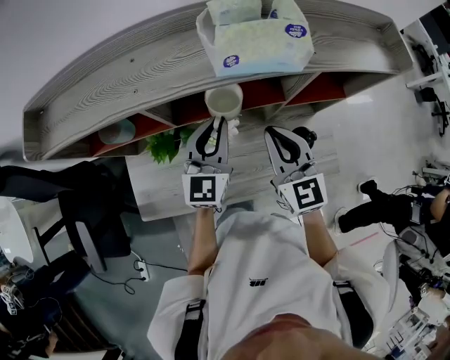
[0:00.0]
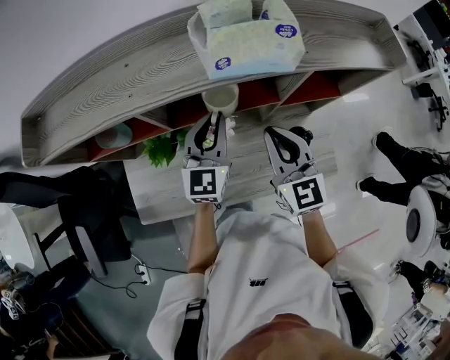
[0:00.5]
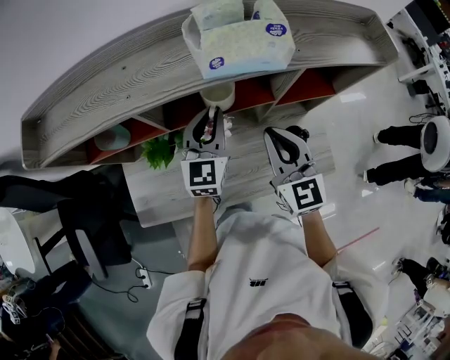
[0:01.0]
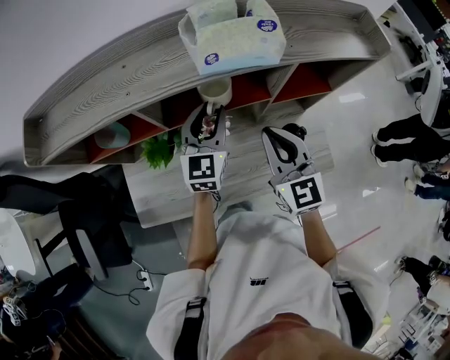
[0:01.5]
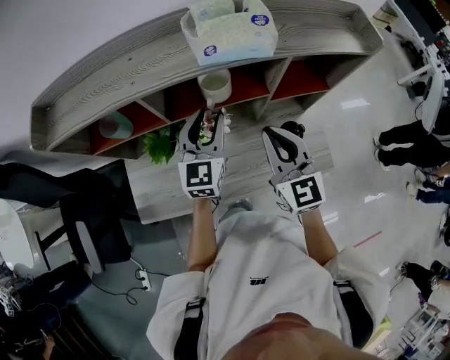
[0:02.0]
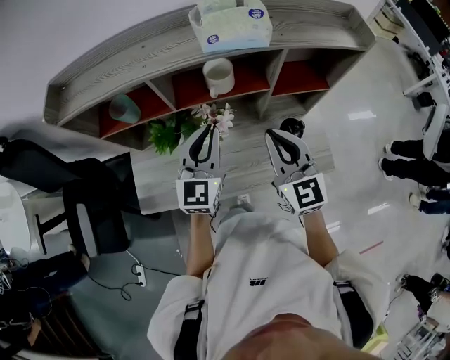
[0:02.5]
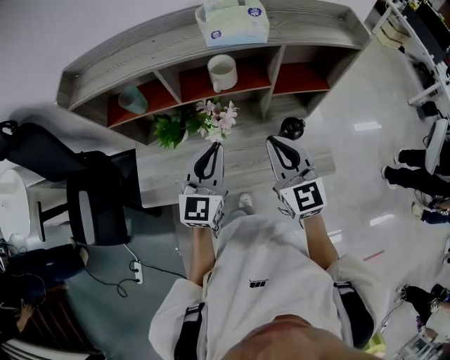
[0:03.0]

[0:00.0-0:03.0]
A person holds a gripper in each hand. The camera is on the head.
0:00.0 to 0:01.5: The left gripper opens up.
0:01.5 to 0:03.0: The right gripper travels backward by about 10 cm. Meanwhile the left gripper moves backward, some 20 cm, and closes its fingers.

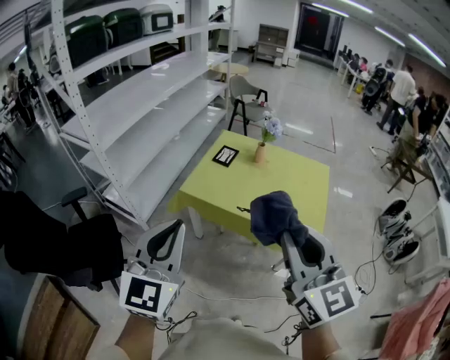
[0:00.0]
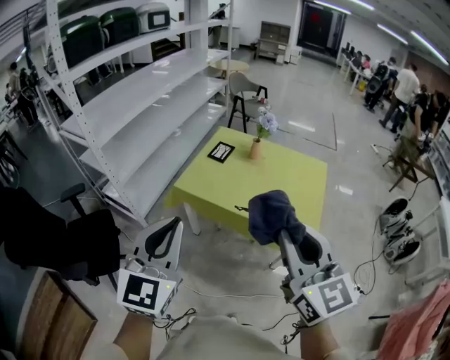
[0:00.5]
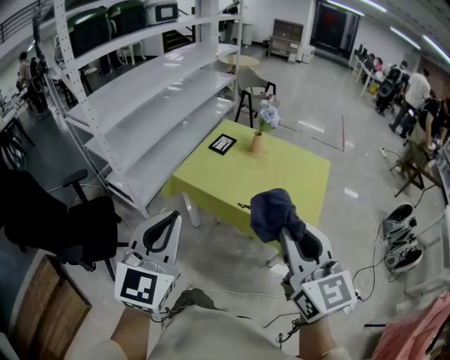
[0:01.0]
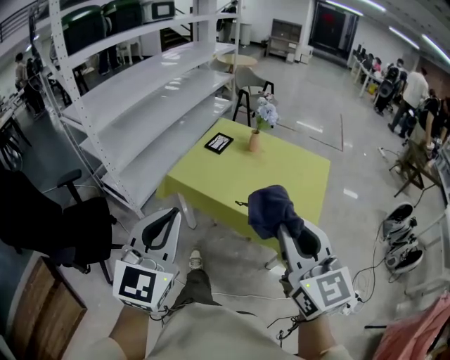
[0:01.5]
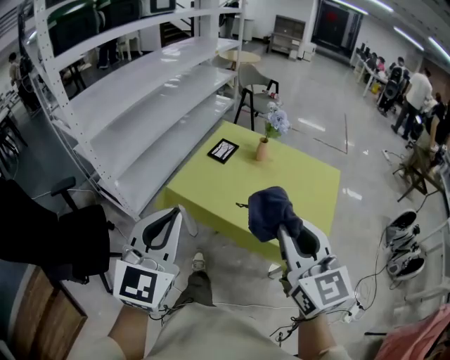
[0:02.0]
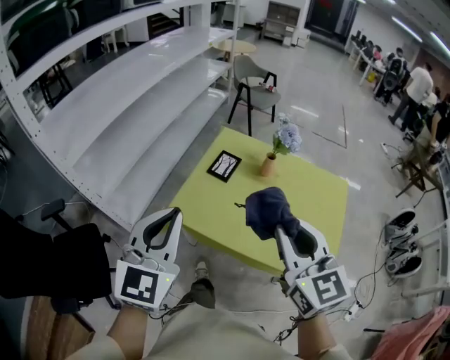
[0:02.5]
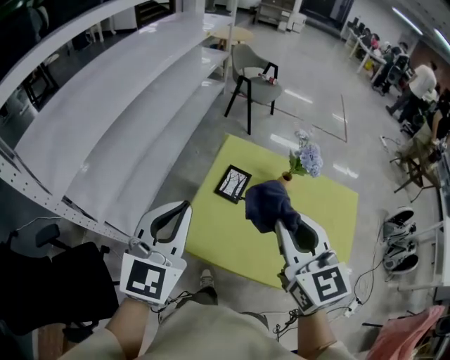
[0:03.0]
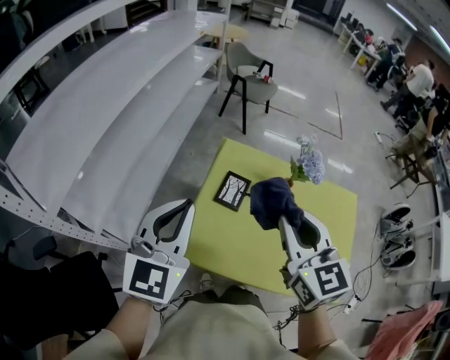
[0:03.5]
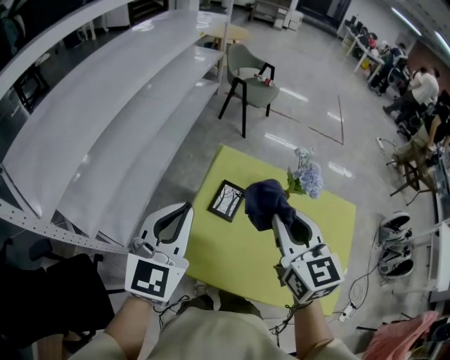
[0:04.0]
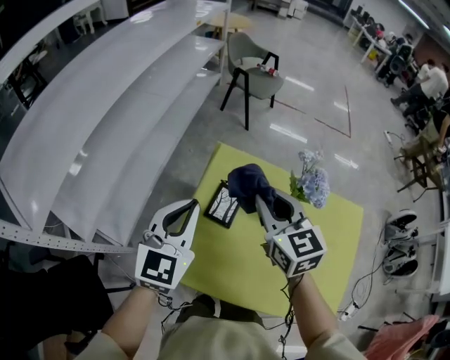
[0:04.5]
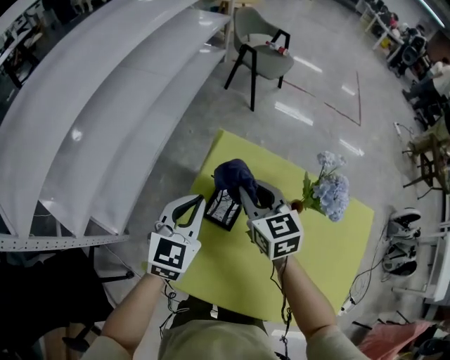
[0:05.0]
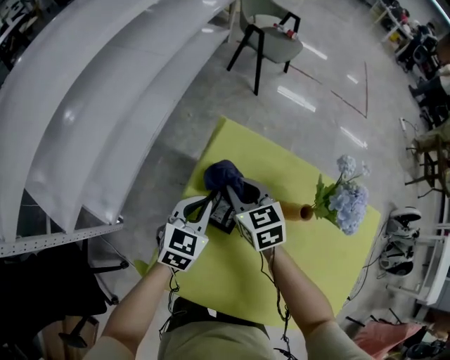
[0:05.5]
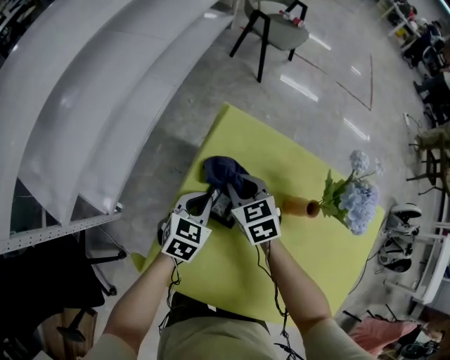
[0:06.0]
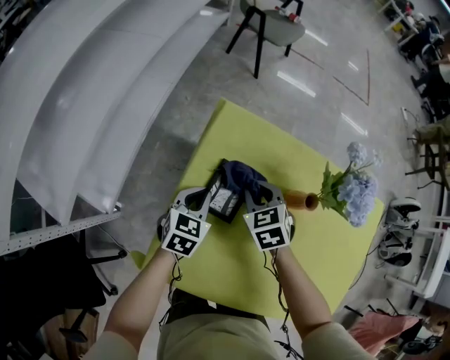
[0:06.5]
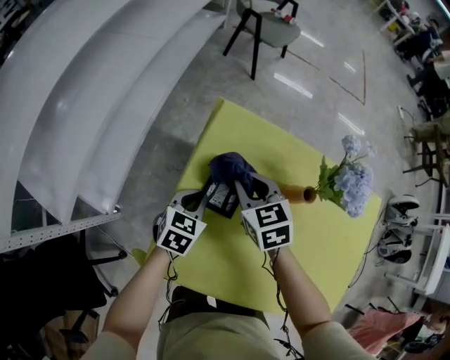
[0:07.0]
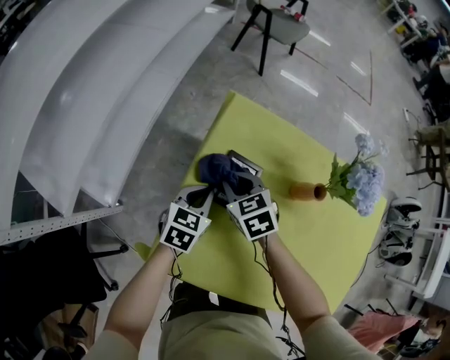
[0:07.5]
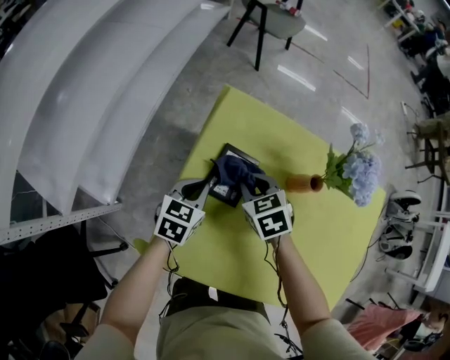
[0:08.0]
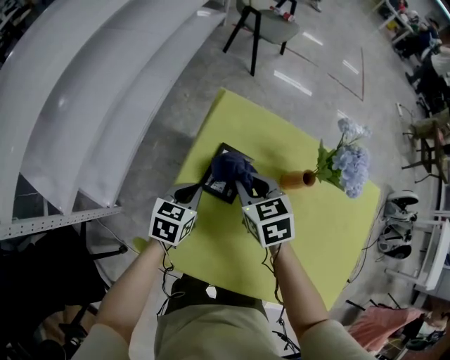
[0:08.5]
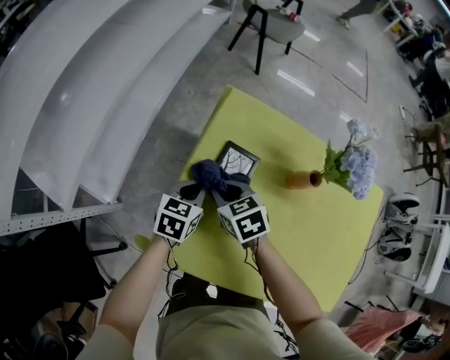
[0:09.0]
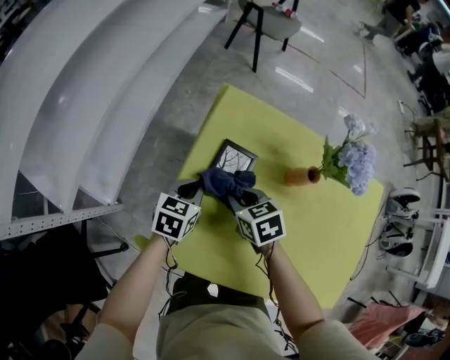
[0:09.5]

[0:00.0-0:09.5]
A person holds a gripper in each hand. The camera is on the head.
0:00.0 to 0:02.0: The right gripper heads forward, downward and to the right, covering roughly 20 cm, while the left gripper heads forward, to the right and downward, covering approximately 15 cm.
0:02.0 to 0:04.0: Both grippers are carried forward, some 40 cm.
0:04.0 to 0:05.5: The two grippers go approximately 35 cm downward and forward. The right gripper swivels about 30 degrees. The left gripper rotates roughly 30 degrees.
0:05.5 to 0:07.5: Both grippers travel together downward, about 5 cm. The right gripper travels to the right and back again, roughly 5 cm each way.
0:07.5 to 0:09.5: The right gripper moves left and right over roughly 10 cm, changing direction 2 times.

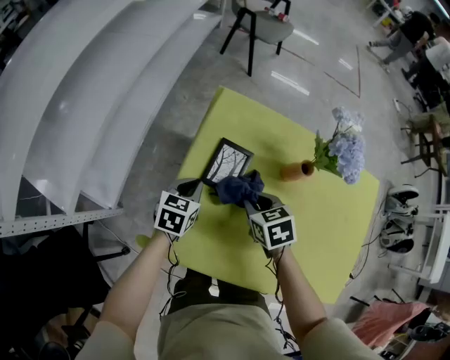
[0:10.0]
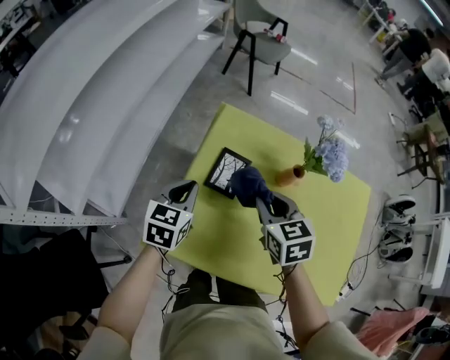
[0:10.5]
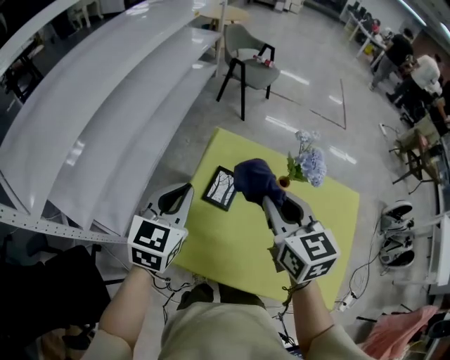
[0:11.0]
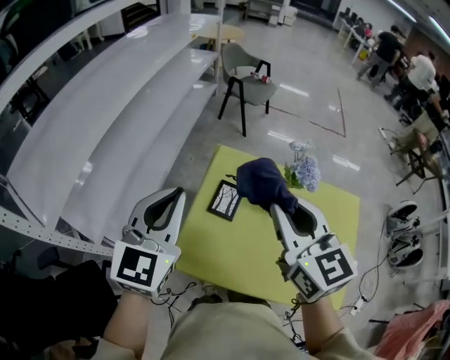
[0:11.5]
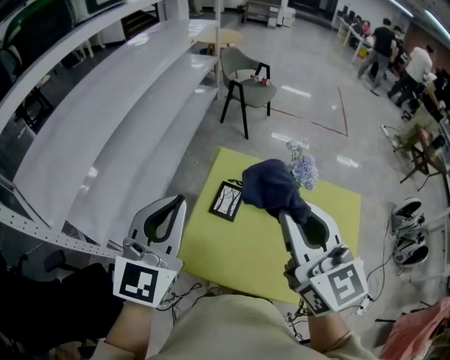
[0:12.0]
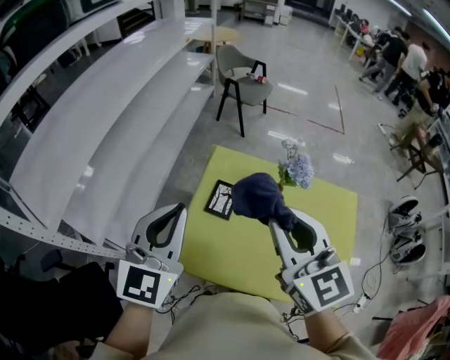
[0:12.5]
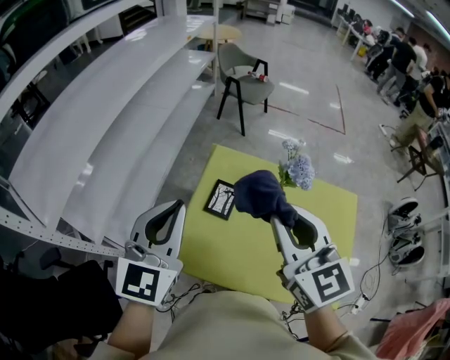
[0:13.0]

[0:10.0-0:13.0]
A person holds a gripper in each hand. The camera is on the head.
0:10.0 to 0:11.5: Both grippers move upward, roughly 40 cm. The right gripper tilts its fingers about 50 degrees upward, while the left gripper angles its fingers upward, by approximately 40 degrees.

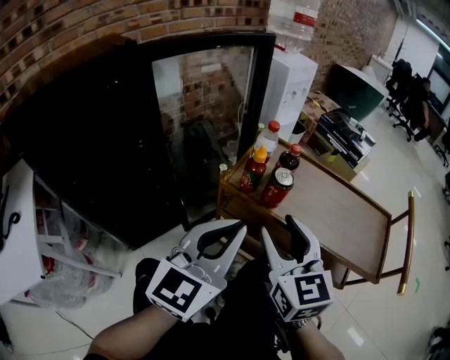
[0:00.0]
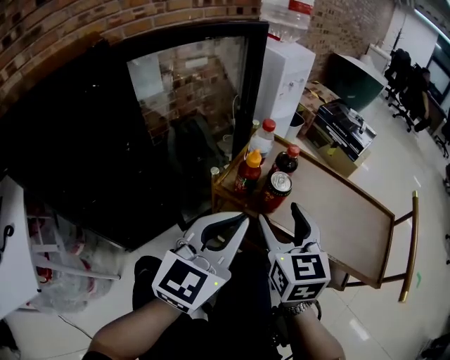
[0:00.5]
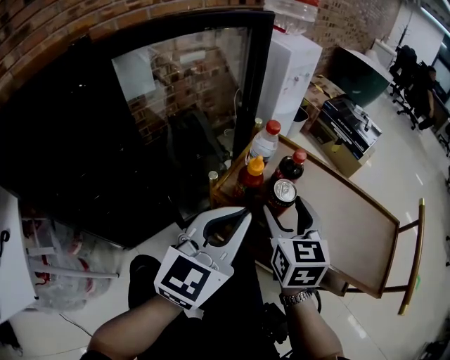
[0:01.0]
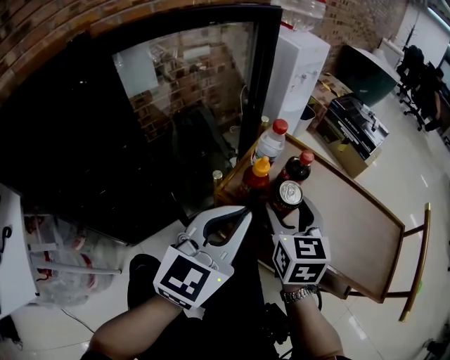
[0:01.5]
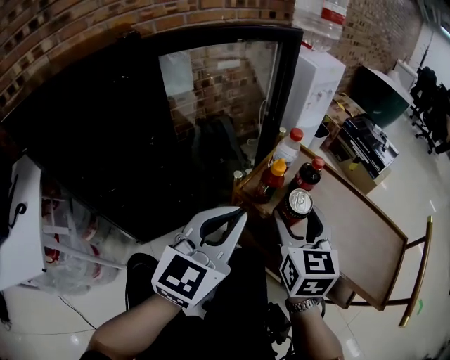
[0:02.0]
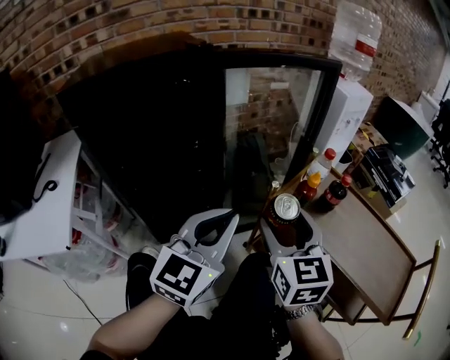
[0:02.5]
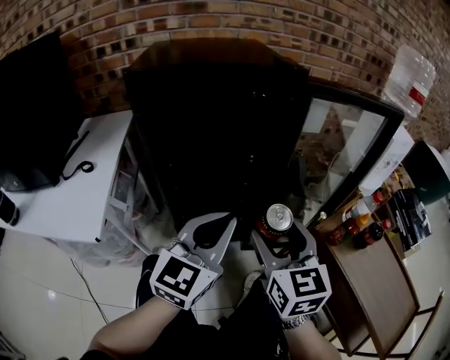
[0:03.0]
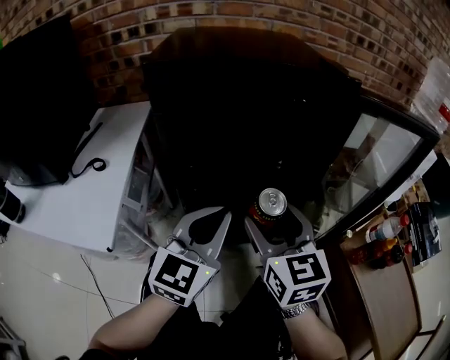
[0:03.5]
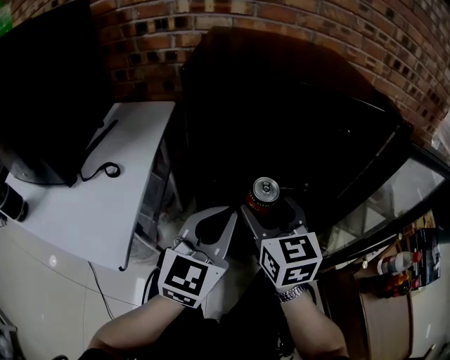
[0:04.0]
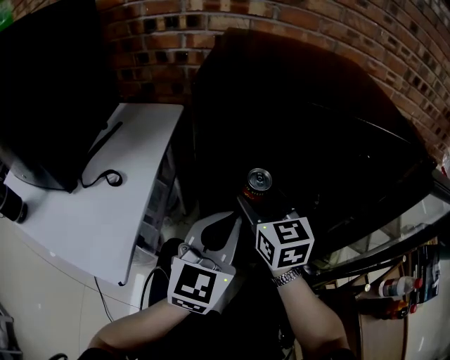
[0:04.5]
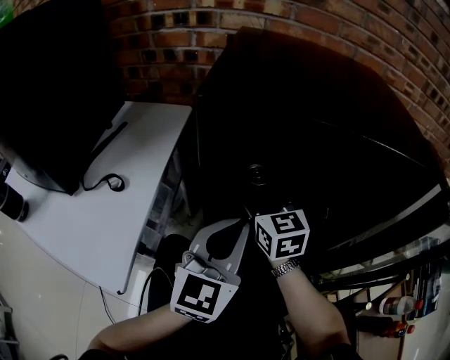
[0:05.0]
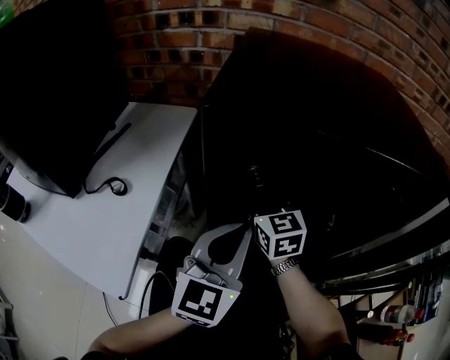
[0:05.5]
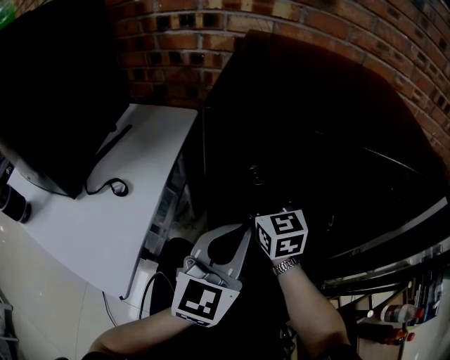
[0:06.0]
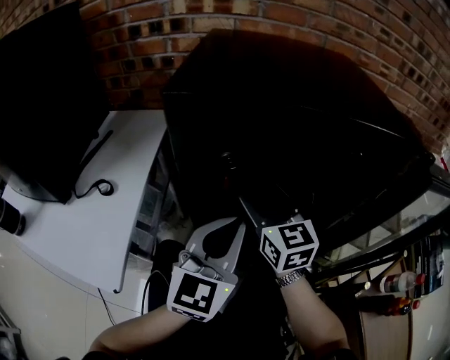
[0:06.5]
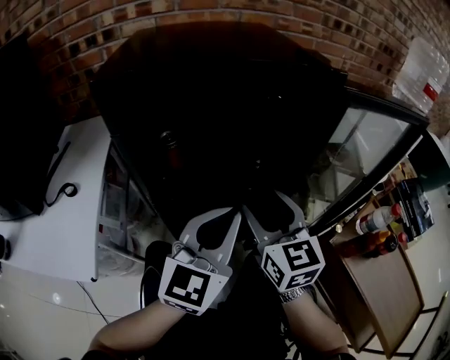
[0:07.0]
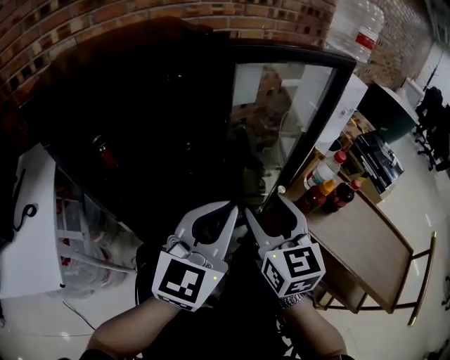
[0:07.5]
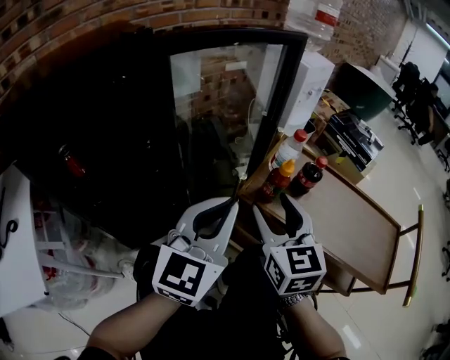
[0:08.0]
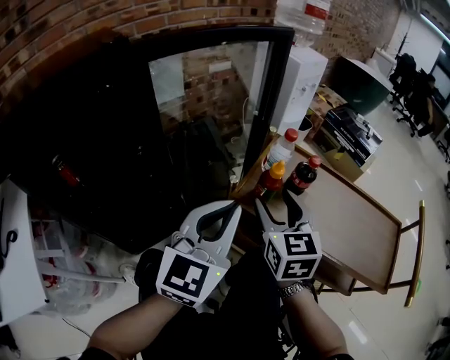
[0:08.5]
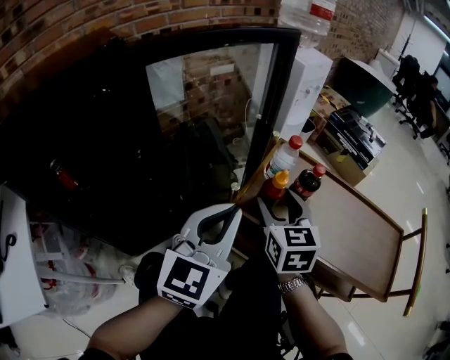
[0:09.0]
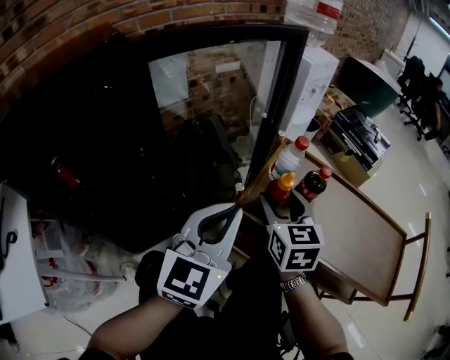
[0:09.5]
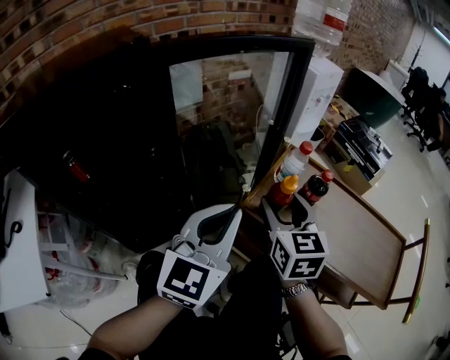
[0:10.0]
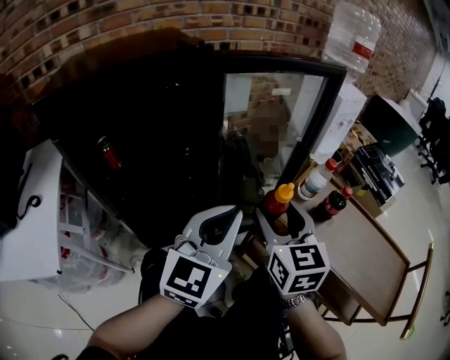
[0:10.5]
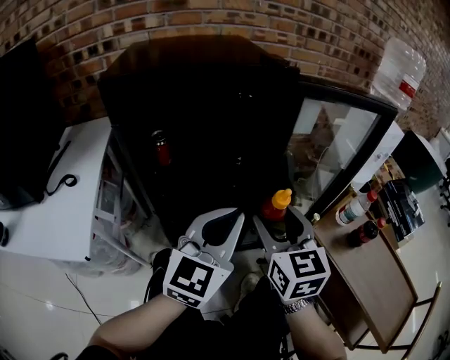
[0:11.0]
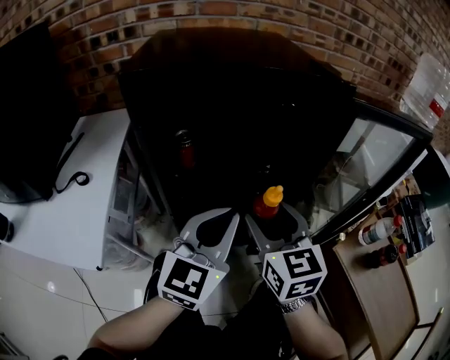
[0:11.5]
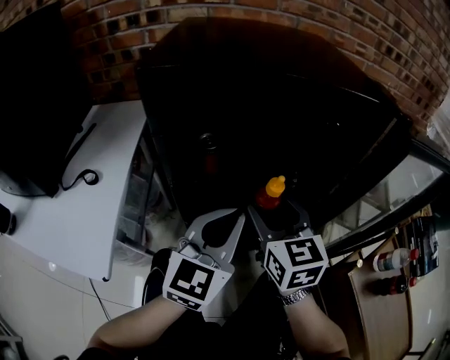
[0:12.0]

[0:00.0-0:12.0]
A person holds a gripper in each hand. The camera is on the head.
0:00.0 to 0:02.0: The right gripper moves forward, approximately 10 cm. Meanwhile the left gripper is displaced forward by roughly 5 cm.
0:02.0 to 0:04.0: The two grippers travel together, about 50 cm. The right gripper rotates about 50 degrees. Meanwhile the left gripper rotates about 40 degrees.
0:04.0 to 0:06.0: The left gripper moves forward, approximately 5 cm. The right gripper moves forward and to the left, approximately 20 cm.
0:06.0 to 0:08.0: The pair of grippers is taken approximately 50 cm. The right gripper rotates about 50 degrees. Meanwhile the left gripper changes its angle by approximately 50 degrees.
0:08.0 to 0:10.0: The right gripper goes roughly 5 cm forward.
0:10.0 to 0:12.0: The left gripper shifts by approximately 35 cm, and swivels roughly 30 degrees. Meanwhile the right gripper ends up about 40 cm from where it was, and rotates approximately 40 degrees.
